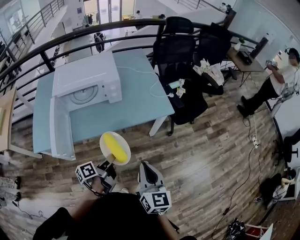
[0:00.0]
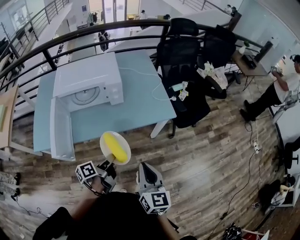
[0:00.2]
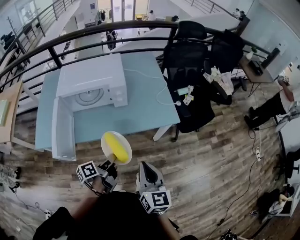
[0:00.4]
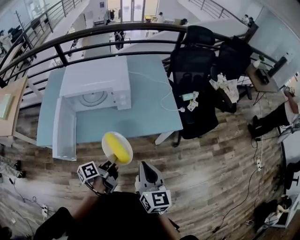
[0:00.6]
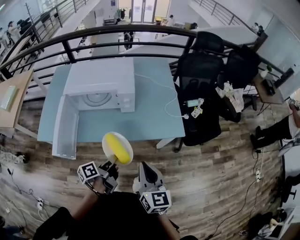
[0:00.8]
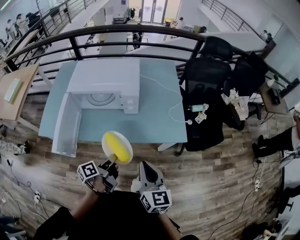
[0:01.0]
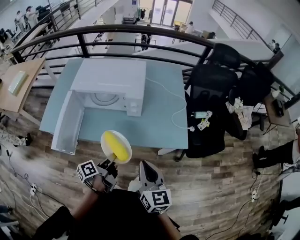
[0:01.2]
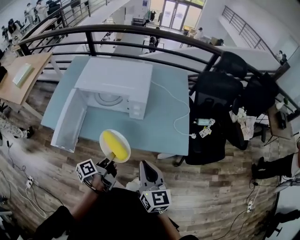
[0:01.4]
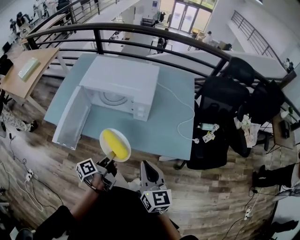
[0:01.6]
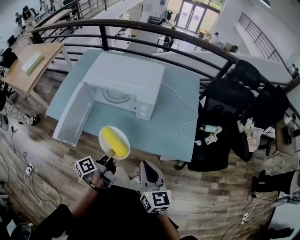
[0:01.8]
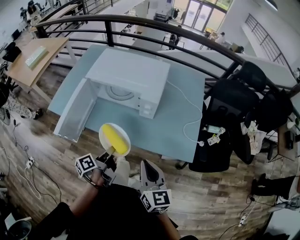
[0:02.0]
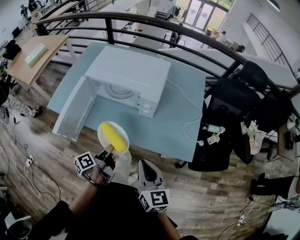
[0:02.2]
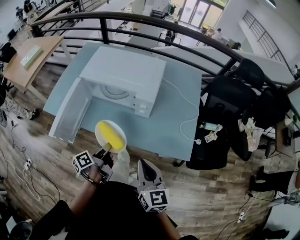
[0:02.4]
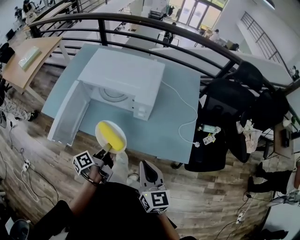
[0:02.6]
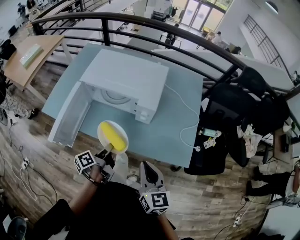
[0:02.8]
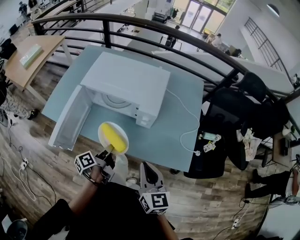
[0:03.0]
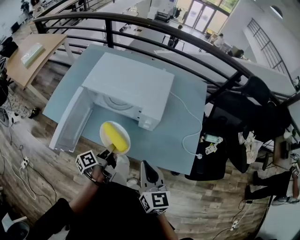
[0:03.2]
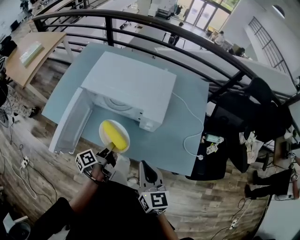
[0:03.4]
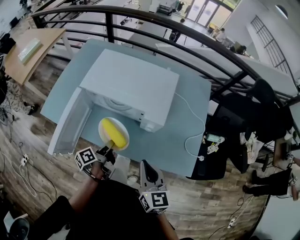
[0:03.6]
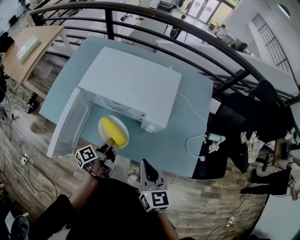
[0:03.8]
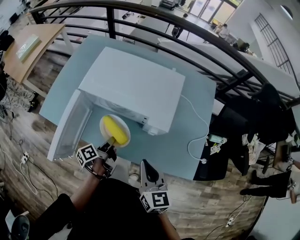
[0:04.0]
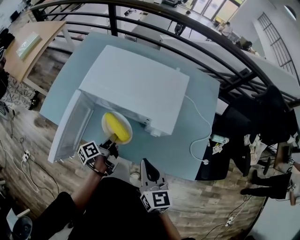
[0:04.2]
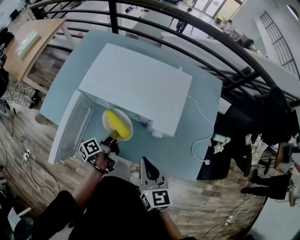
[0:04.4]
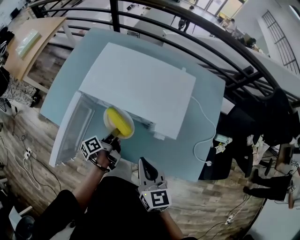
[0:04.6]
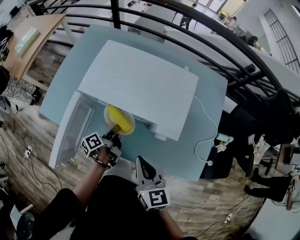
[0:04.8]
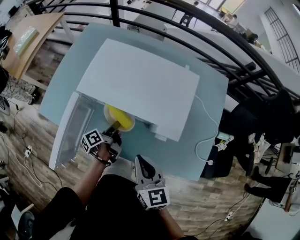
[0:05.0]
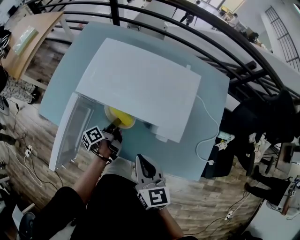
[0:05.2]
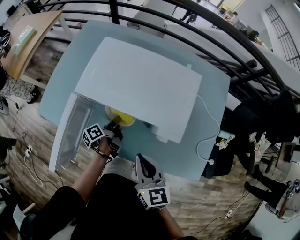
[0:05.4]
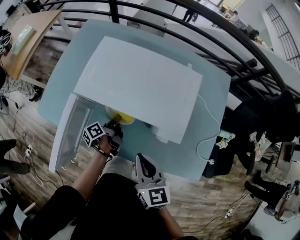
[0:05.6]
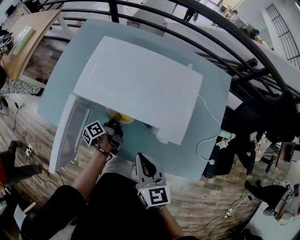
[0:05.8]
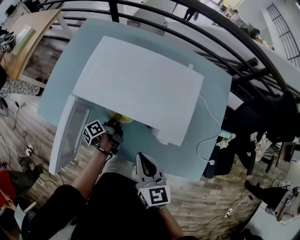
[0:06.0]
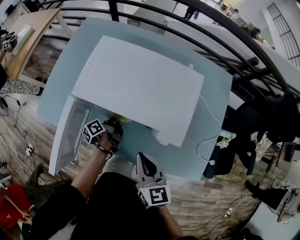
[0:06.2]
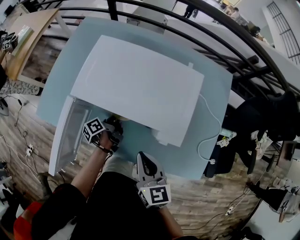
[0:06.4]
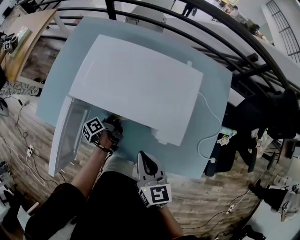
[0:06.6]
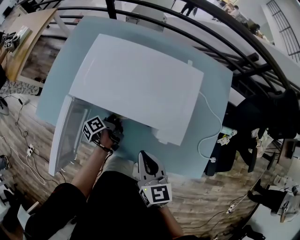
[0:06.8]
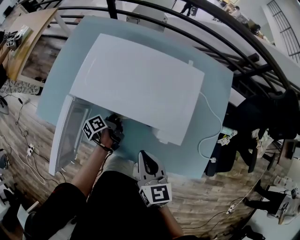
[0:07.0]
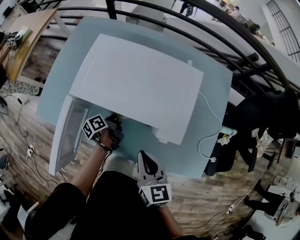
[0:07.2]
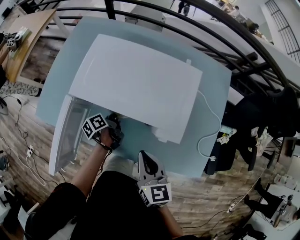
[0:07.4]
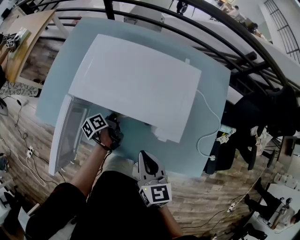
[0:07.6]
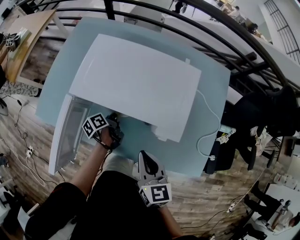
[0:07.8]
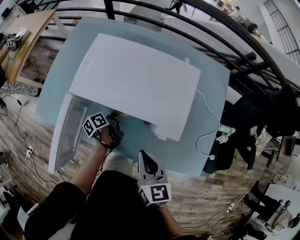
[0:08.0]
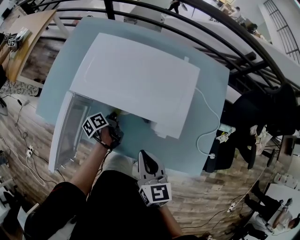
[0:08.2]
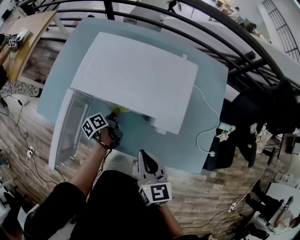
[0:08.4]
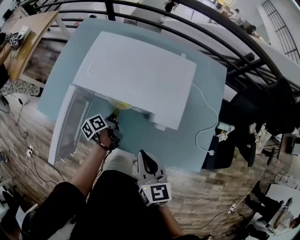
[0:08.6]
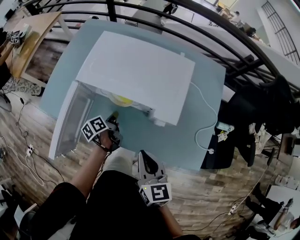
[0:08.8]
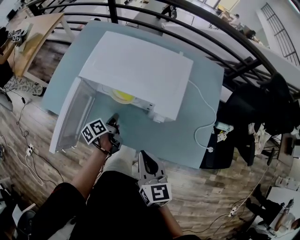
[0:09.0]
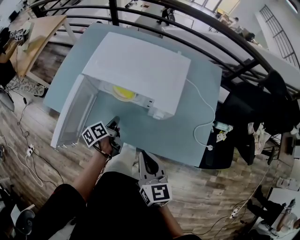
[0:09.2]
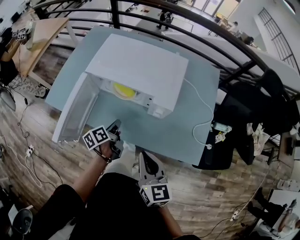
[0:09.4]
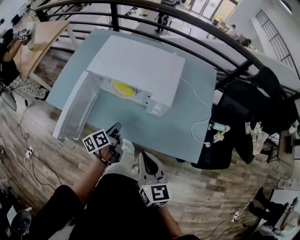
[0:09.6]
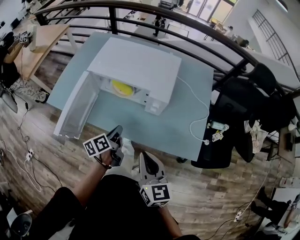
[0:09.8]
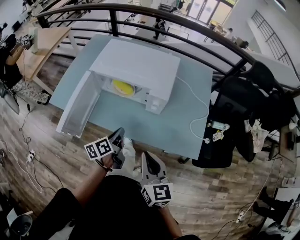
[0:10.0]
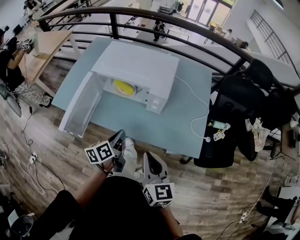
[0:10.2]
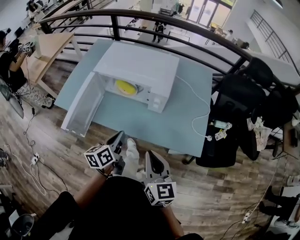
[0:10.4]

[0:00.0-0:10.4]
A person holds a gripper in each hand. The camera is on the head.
0:00.0 to 0:01.4: The right gripper ends up approximately 20 cm from where it was, and turns by roughly 30 degrees.
0:01.4 to 0:03.0: The right gripper shifts by roughly 10 cm.
0:03.0 to 0:04.4: The right gripper moves about 15 cm.
0:04.4 to 0:06.0: The right gripper shifts by about 5 cm.
0:07.4 to 0:09.0: The right gripper changes place by some 10 cm.
0:09.0 to 0:10.4: The right gripper shifts by approximately 15 cm.

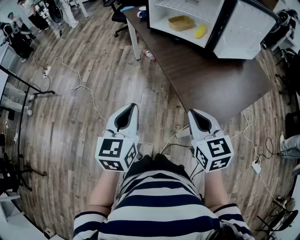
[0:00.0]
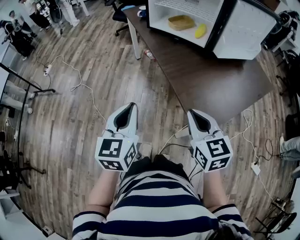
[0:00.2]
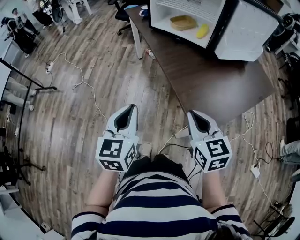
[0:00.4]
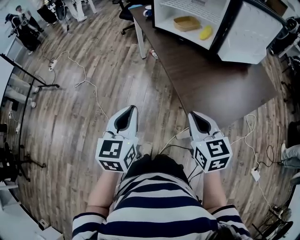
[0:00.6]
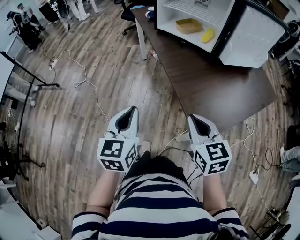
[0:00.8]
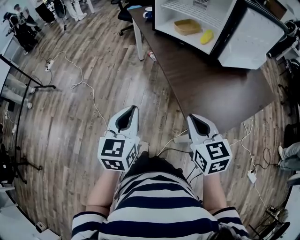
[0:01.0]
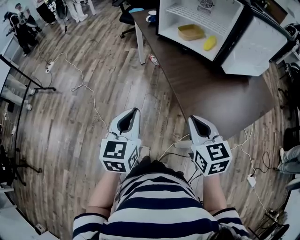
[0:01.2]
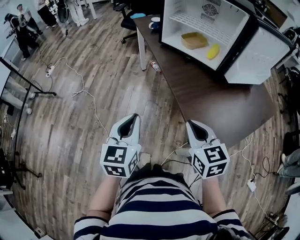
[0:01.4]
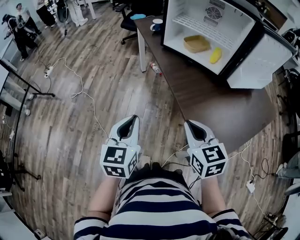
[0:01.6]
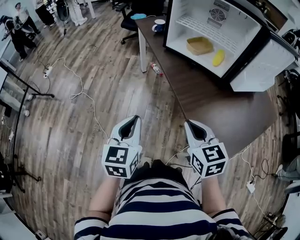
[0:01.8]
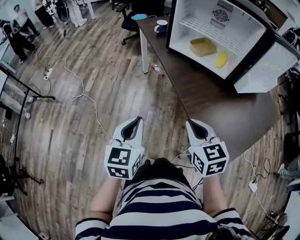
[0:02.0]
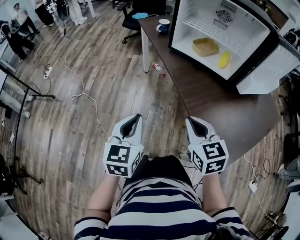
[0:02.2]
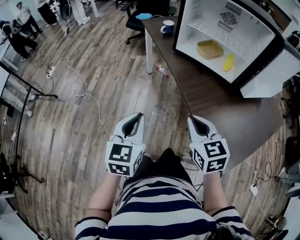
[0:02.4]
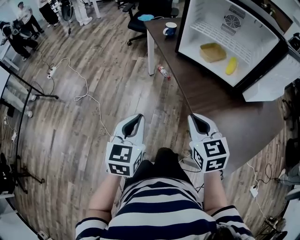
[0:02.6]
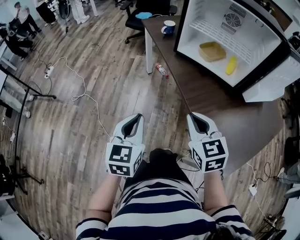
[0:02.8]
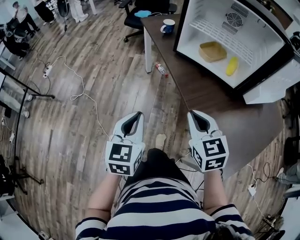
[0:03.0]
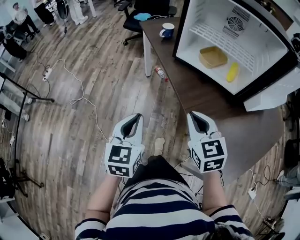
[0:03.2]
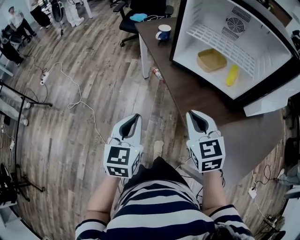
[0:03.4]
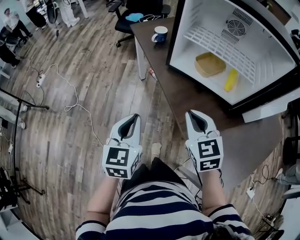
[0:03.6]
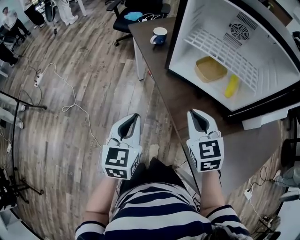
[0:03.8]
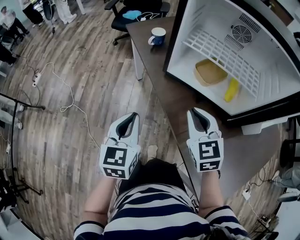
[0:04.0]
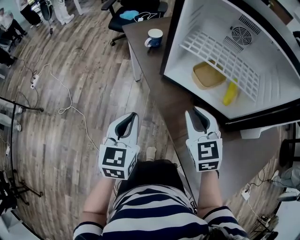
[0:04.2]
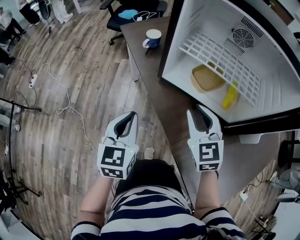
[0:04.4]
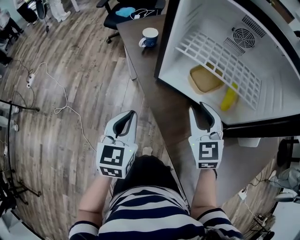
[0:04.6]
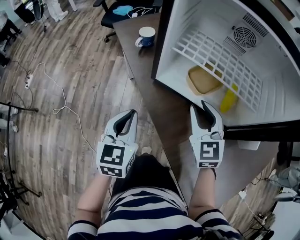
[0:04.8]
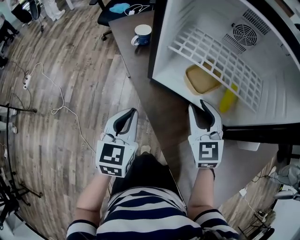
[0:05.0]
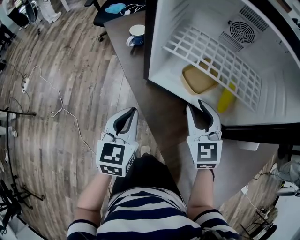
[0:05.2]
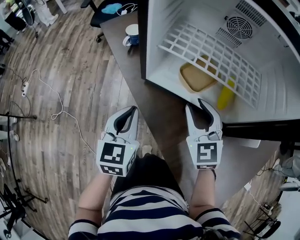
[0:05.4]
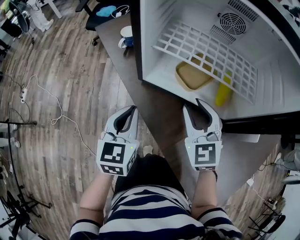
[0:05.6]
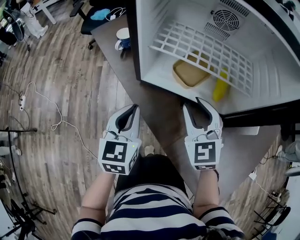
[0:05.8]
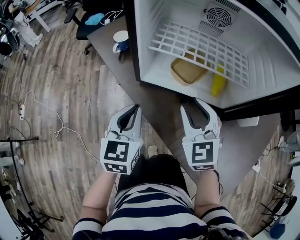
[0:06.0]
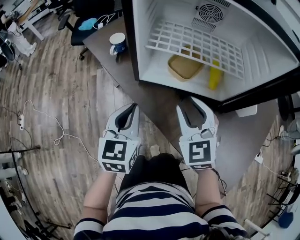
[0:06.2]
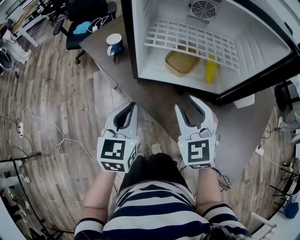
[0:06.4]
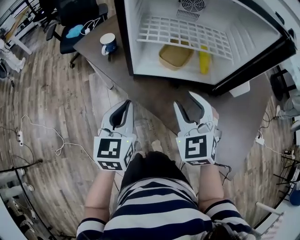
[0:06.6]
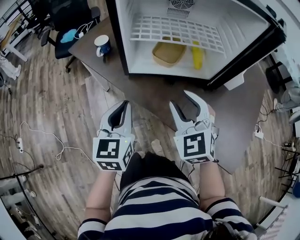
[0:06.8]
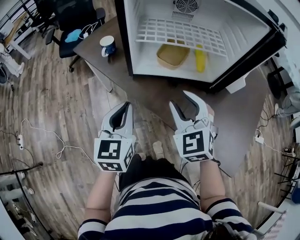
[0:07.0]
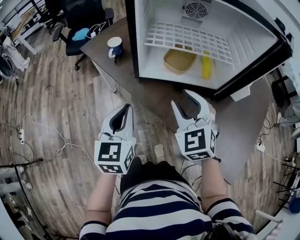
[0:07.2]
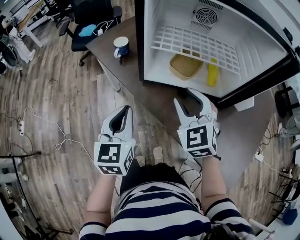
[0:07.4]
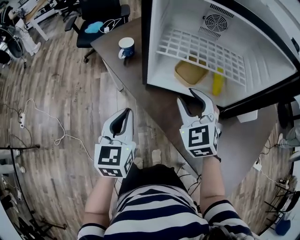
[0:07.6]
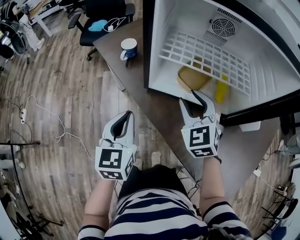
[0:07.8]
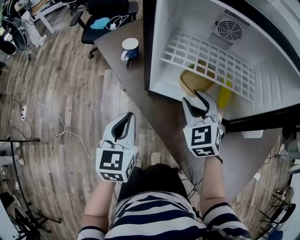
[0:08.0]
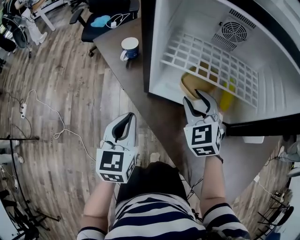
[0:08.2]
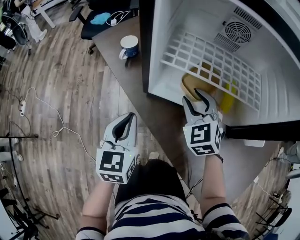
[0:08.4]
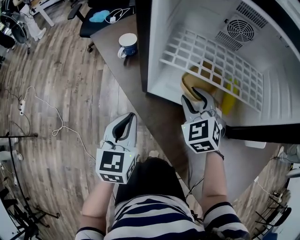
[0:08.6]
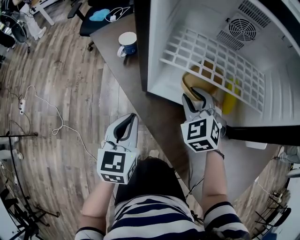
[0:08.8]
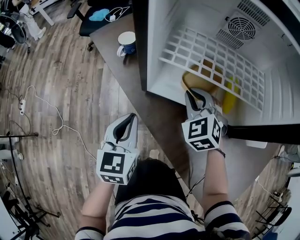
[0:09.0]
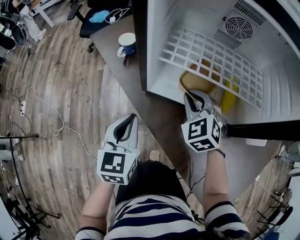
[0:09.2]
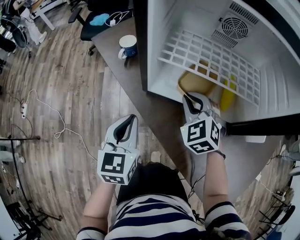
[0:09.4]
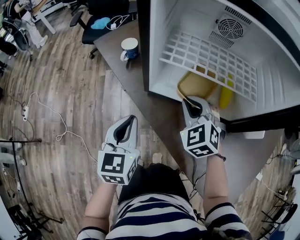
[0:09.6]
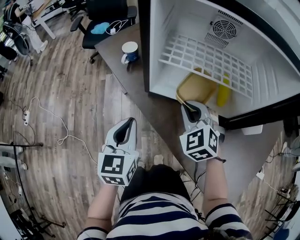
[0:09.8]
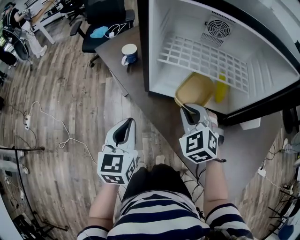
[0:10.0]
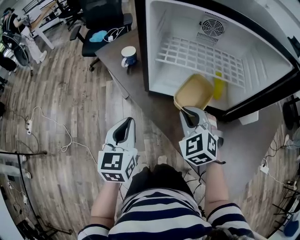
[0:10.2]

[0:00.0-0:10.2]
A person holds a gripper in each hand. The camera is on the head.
0:00.0 to 0:01.4: Both grippers move forward, about 10 cm.
0:01.4 to 0:03.0: The grippers both shift forward and to the left by about 20 cm.
0:03.0 to 0:04.4: The two grippers go some 25 cm forward. The right gripper opens its fingers.
0:04.4 to 0:05.8: The left gripper heads forward and to the right, covering some 10 cm, while the right gripper ends up some 5 cm from where it was.
0:05.8 to 0:07.2: The left gripper moves backward and upward, some 10 cm, while the right gripper goes roughly 5 cm backward.
0:07.2 to 0:08.8: The right gripper is displaced forward and downward by roughly 20 cm; the left gripper travels forward and downward by approximately 10 cm.
0:08.8 to 0:10.2: The left gripper moves backward and upward, some 10 cm. The right gripper goes approximately 15 cm backward and upward, and closes its fingers.

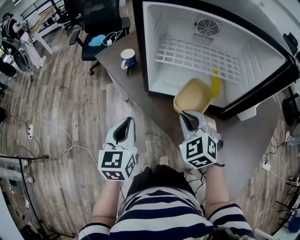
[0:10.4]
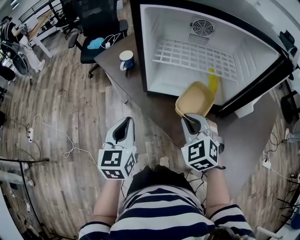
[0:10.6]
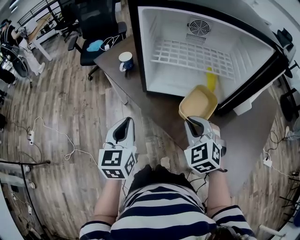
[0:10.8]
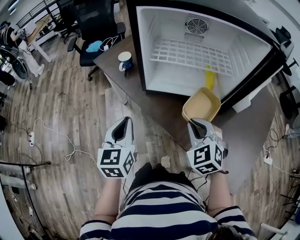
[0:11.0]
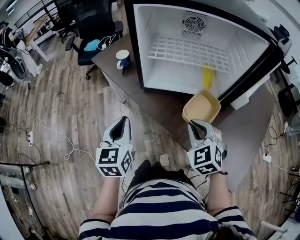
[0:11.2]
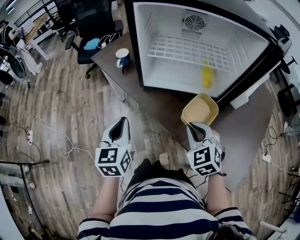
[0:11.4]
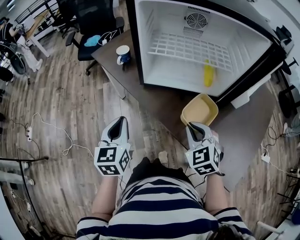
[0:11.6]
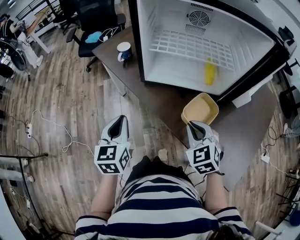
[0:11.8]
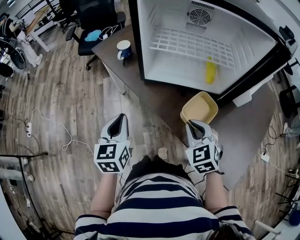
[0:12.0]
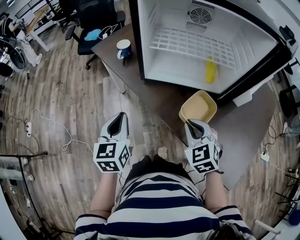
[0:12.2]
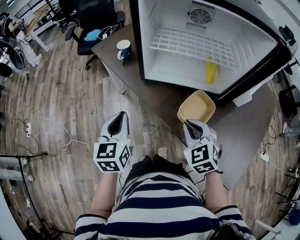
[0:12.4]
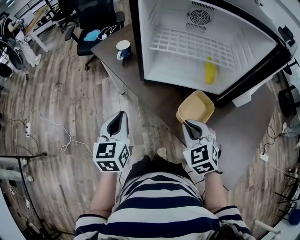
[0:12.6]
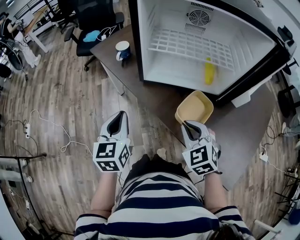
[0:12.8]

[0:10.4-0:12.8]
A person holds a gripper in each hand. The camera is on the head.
0:10.4 to 0:11.6: The right gripper shifts about 10 cm backward.
0:11.6 to 0:12.8: The grippers stay close to where they were, moving slightly.

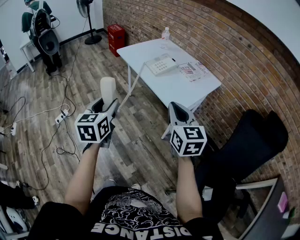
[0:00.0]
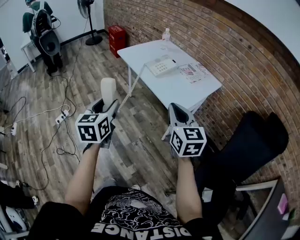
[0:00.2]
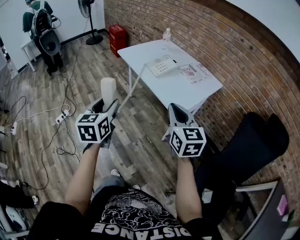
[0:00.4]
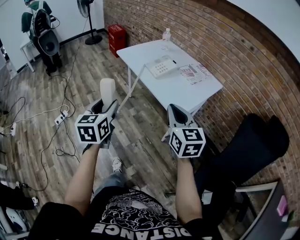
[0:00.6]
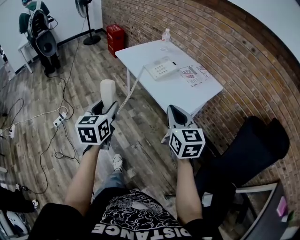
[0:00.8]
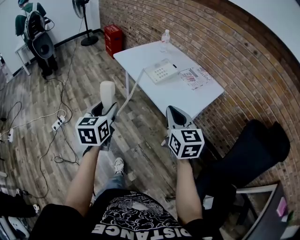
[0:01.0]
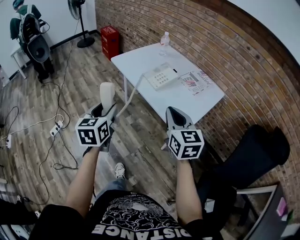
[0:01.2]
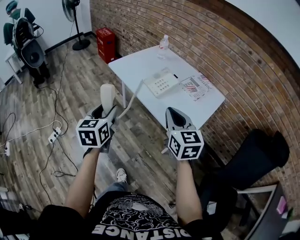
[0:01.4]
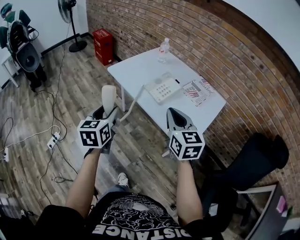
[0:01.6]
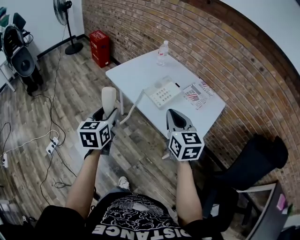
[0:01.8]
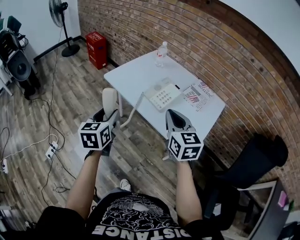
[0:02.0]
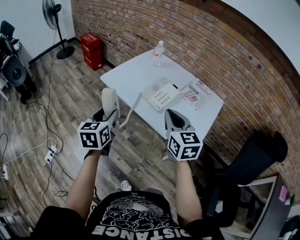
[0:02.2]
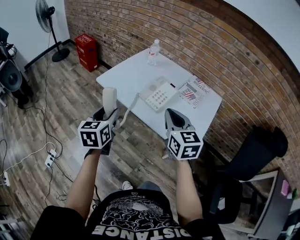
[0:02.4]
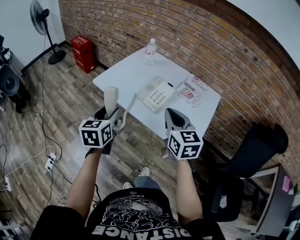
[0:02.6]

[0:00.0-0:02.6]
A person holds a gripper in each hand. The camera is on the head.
0:00.0 to 0:01.2: Both grippers travel together forward, about 15 cm.
0:01.2 to 0:02.6: Both grippers move forward, roughly 20 cm.
